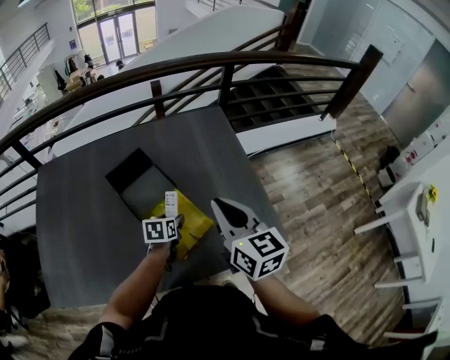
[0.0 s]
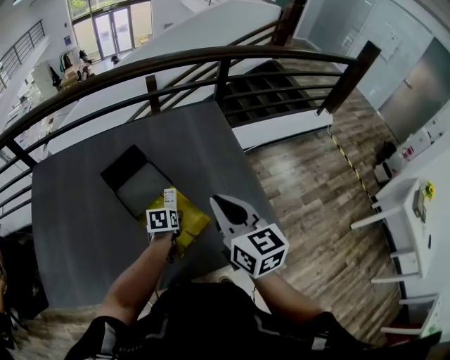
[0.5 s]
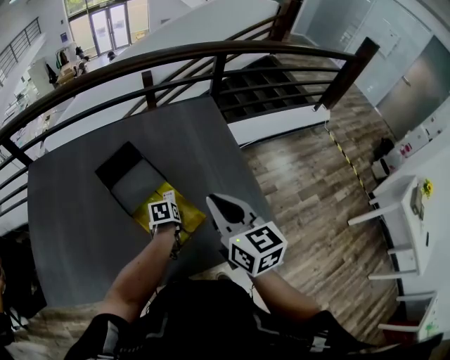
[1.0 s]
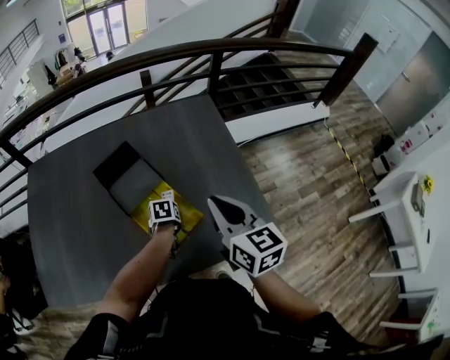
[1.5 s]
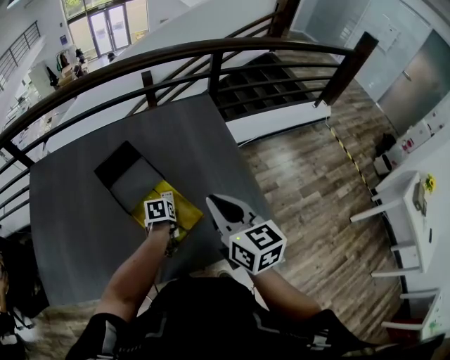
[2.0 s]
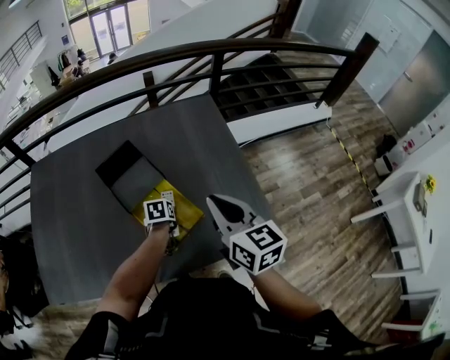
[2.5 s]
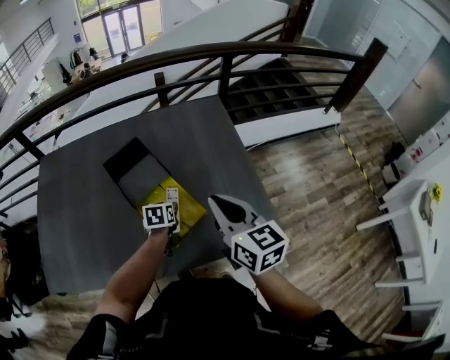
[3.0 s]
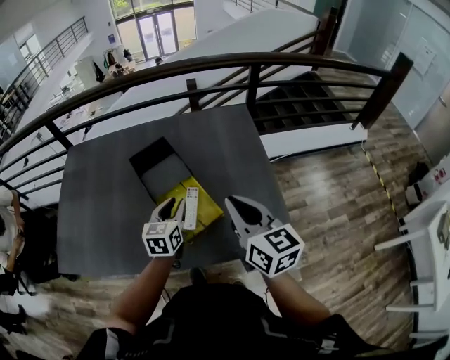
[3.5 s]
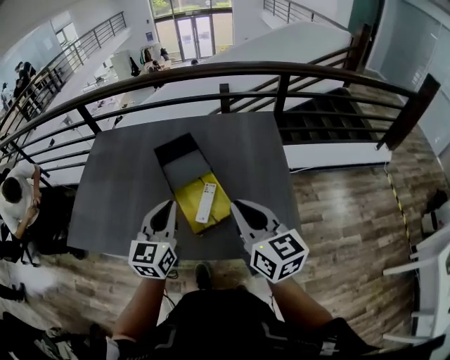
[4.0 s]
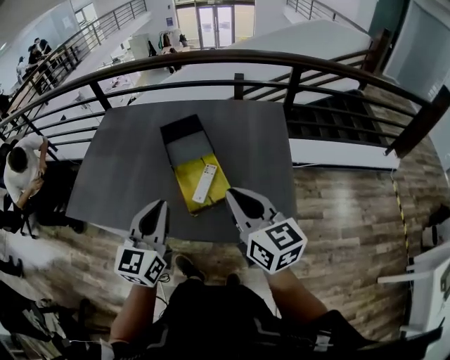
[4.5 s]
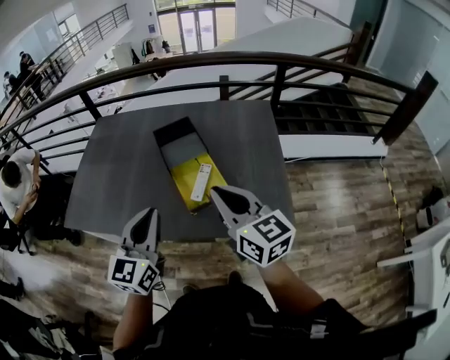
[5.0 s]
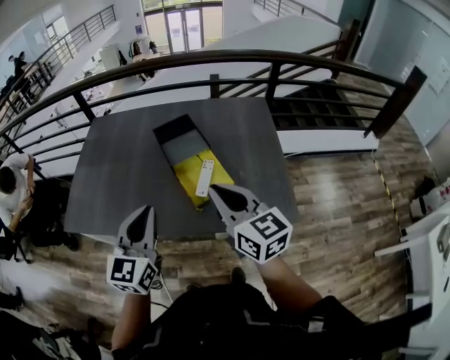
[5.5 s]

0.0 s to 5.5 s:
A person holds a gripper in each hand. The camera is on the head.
0.0 to 2.0 s: The left gripper is displaced downward by about 5 cm.
2.0 to 3.5 s: The right gripper changes place by roughly 5 cm. Meanwhile the left gripper is displaced upward by some 20 cm, points its fingers some 40 degrees further upward, and closes.
3.5 to 5.5 s: The right gripper is displaced backward and to the left by approximately 15 cm, while the left gripper shifts roughly 35 cm backward, upward and to the left, turns by some 20 degrees, and closes.

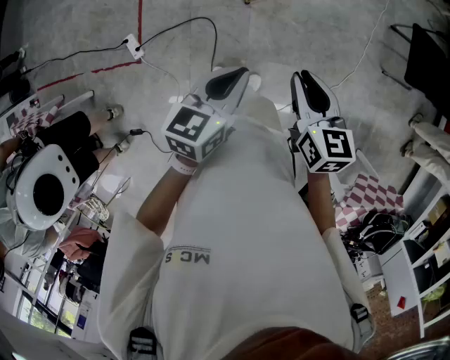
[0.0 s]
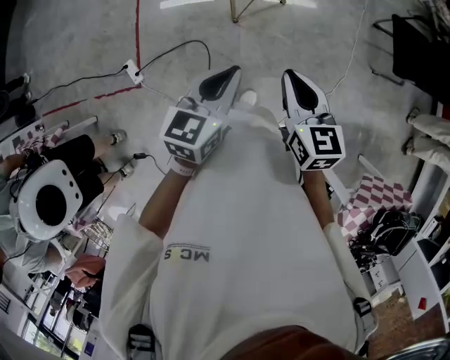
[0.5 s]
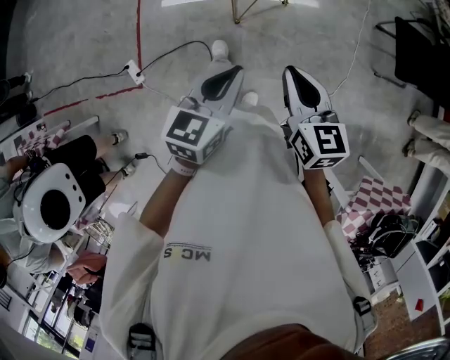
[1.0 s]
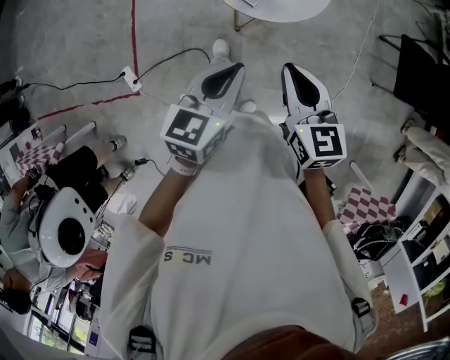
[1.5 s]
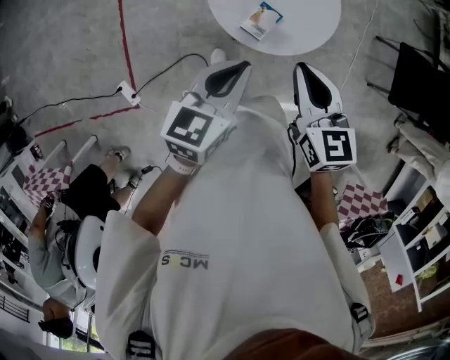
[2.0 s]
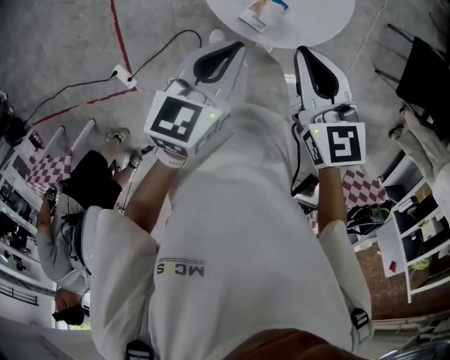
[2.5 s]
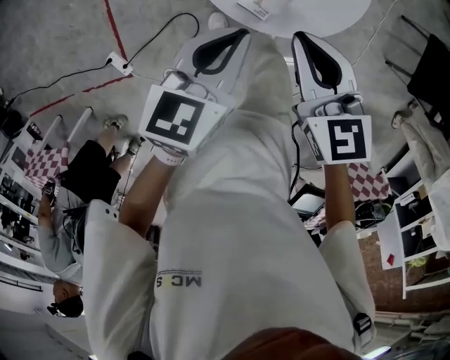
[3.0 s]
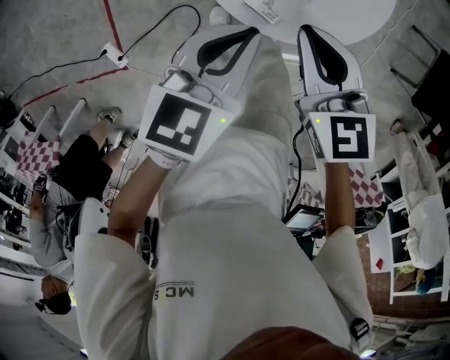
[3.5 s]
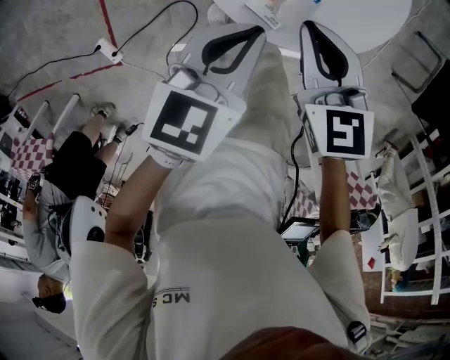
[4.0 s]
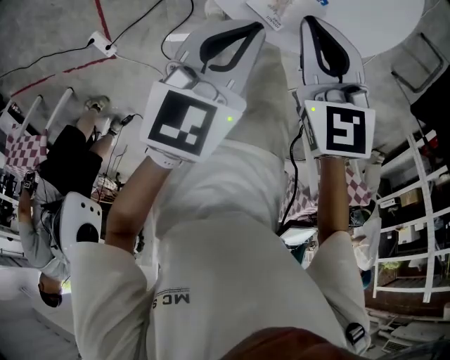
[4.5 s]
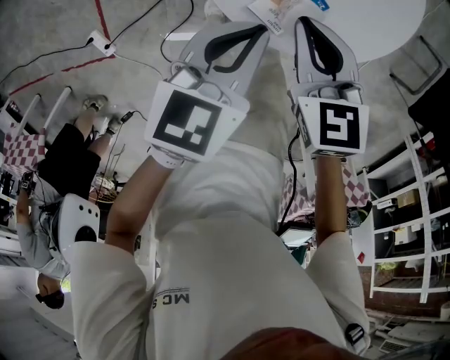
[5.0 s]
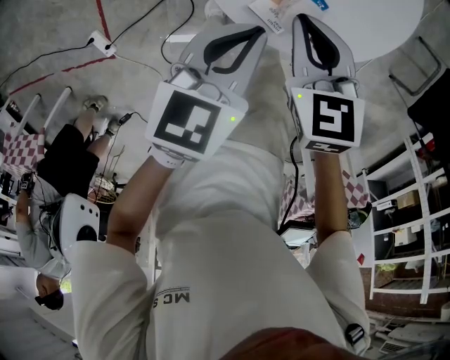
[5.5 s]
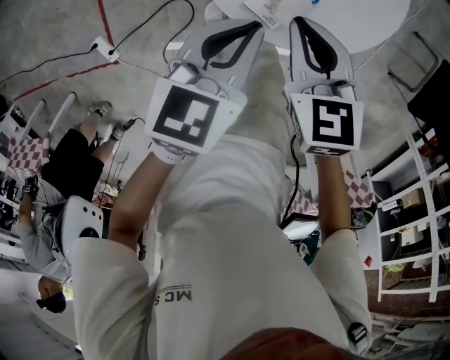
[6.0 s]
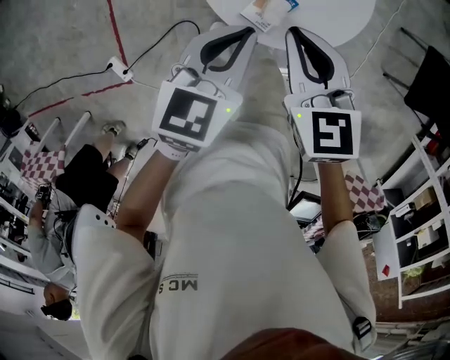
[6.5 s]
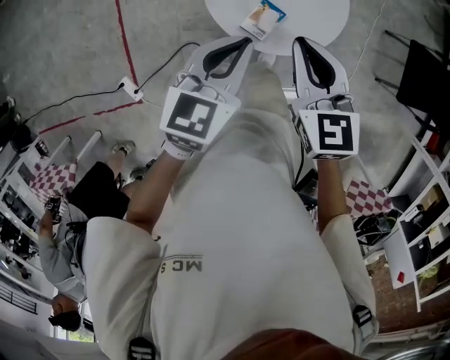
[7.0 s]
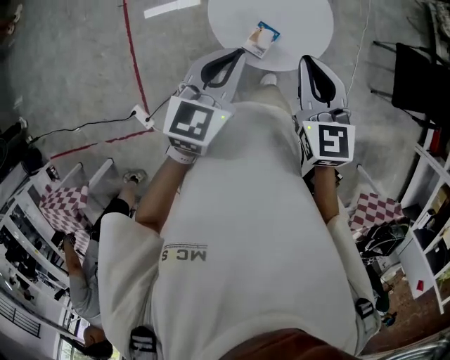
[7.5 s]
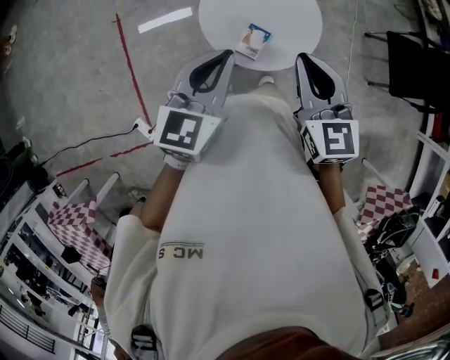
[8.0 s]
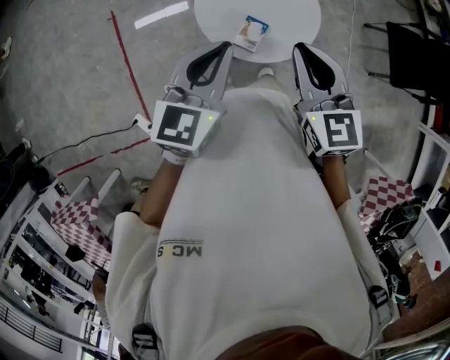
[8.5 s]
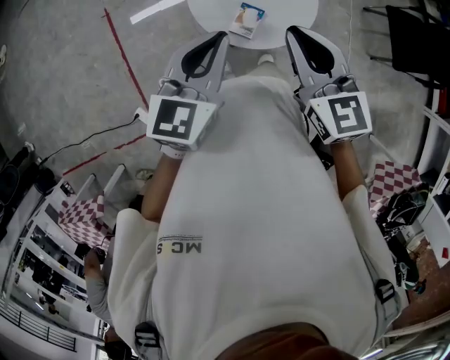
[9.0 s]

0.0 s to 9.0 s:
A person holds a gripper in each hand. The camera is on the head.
0.0 to 2.0 s: Both grippers are carried forward, some 40 cm.
2.0 to 4.5 s: The two grippers go some 30 cm downward and forward.
4.5 to 7.0 s: The grippers both shift upward by roughly 25 cm.
7.0 to 9.0 s: The right gripper shifts some 10 cm upward and backward, while the left gripper travels upward by approximately 10 cm.

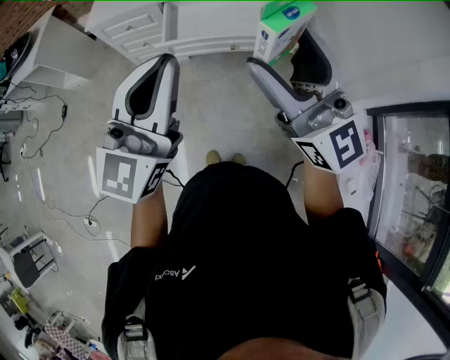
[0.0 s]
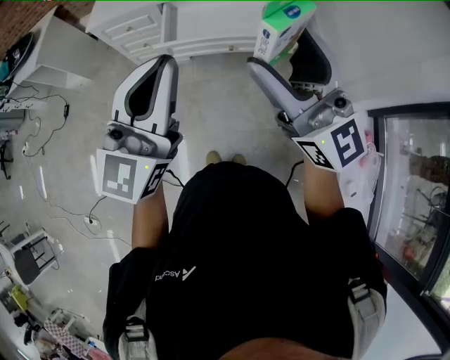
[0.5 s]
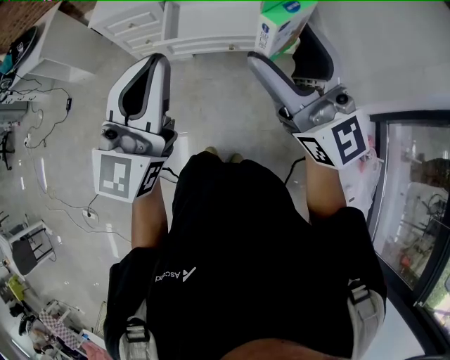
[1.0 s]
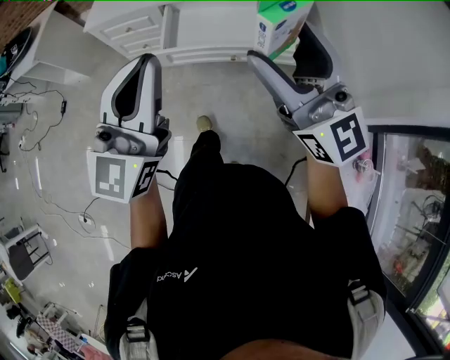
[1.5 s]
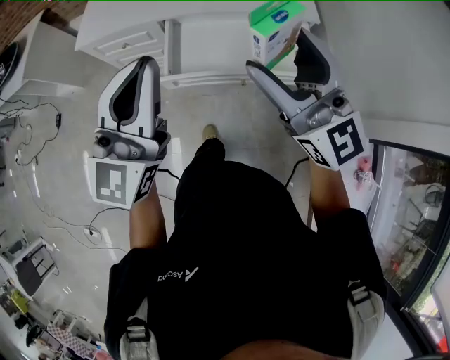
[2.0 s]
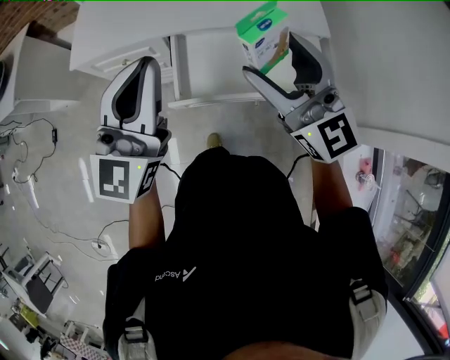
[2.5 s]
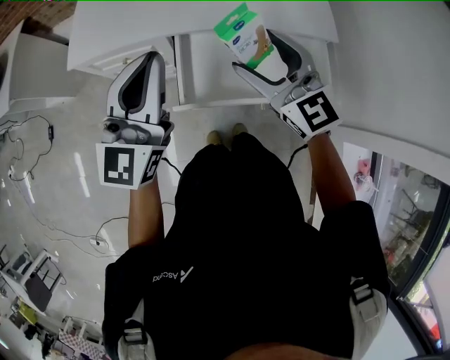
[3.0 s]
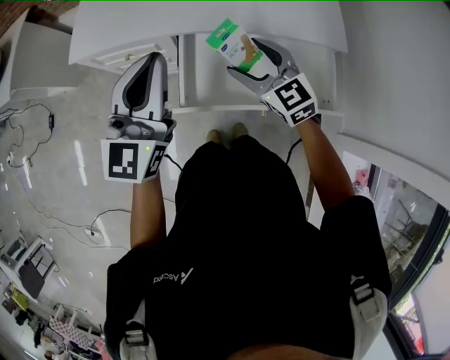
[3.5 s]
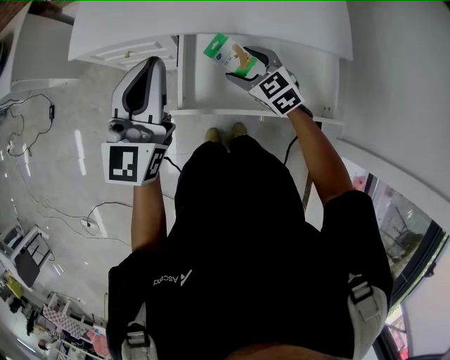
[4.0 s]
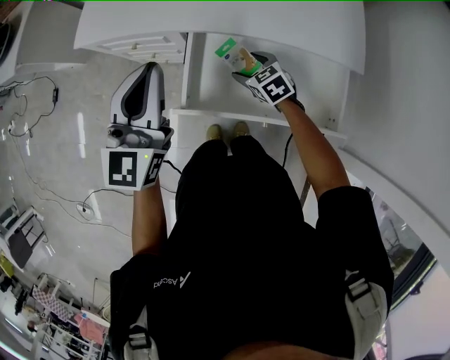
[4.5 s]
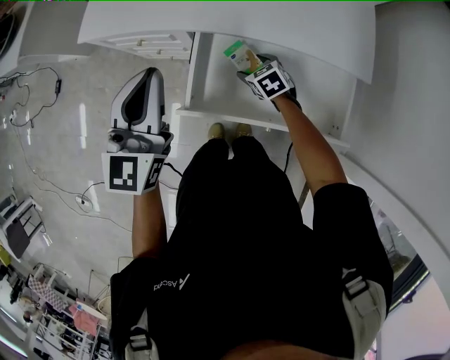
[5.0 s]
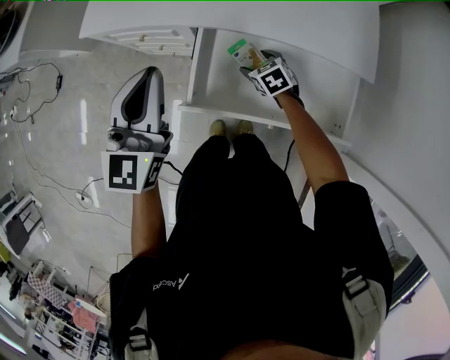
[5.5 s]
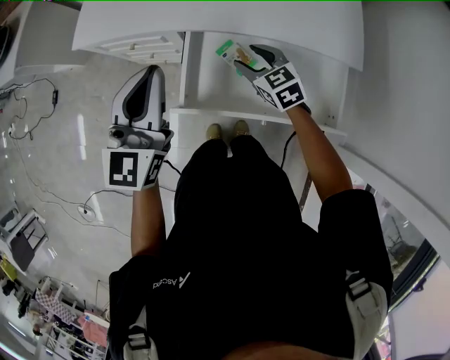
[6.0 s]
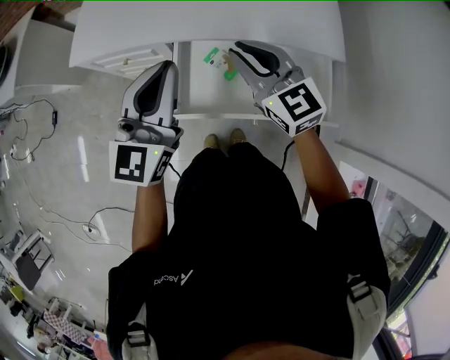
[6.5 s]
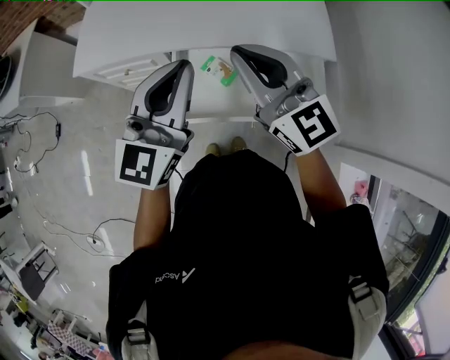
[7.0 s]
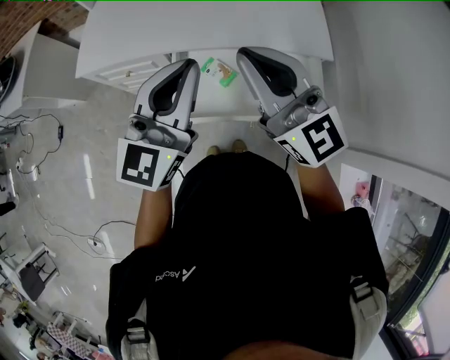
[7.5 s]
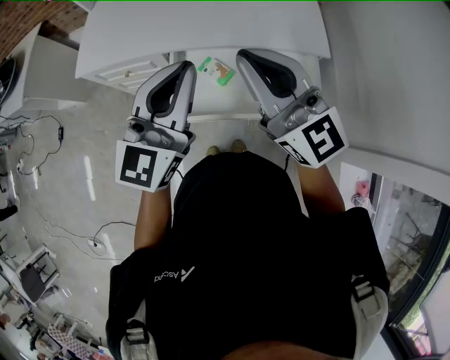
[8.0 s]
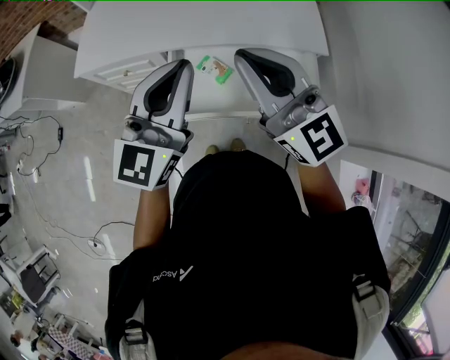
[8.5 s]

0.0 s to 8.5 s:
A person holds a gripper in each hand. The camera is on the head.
0.0 to 2.0 s: Both grippers travel together forward, some 25 cm.
2.0 to 4.0 s: The left gripper shifts some 25 cm forward and downward. Meanwhile the right gripper travels downward and forward by about 40 cm, and angles its fingers downward, by about 50 degrees.
4.0 to 6.5 s: The right gripper goes some 15 cm upward, rotates approximately 30 degrees, and closes up.
6.5 to 8.5 s: The left gripper moves backward and to the right, about 10 cm; the right gripper heads upward and backward, covering some 15 cm, and rotates approximately 20 degrees.

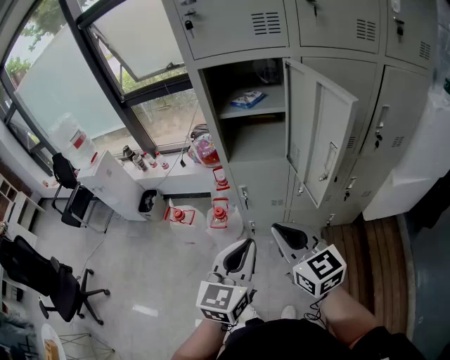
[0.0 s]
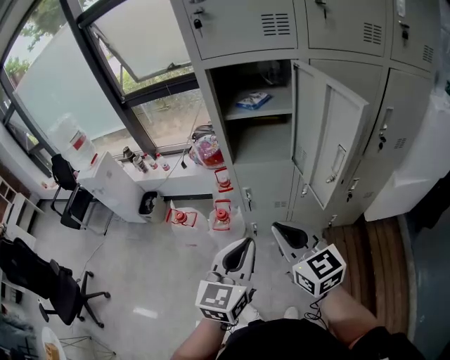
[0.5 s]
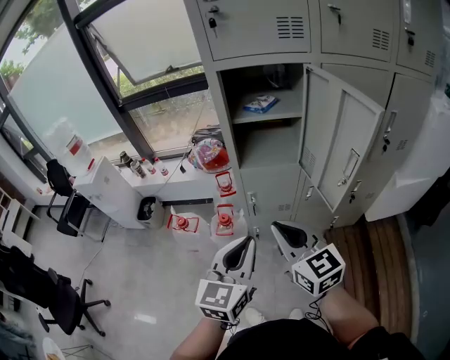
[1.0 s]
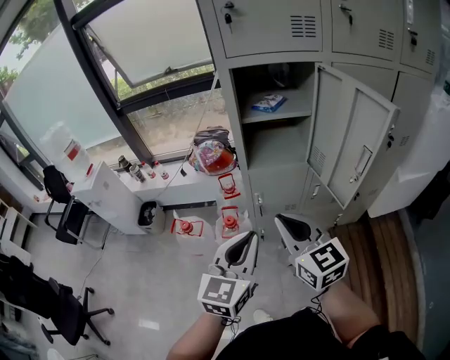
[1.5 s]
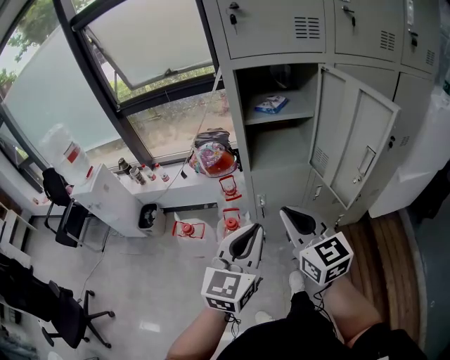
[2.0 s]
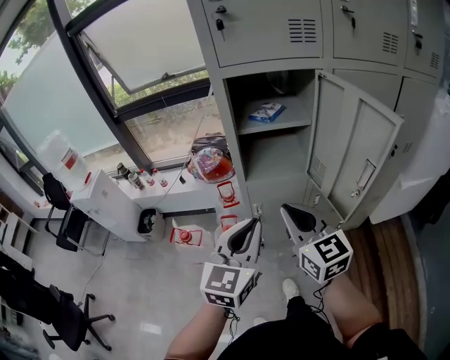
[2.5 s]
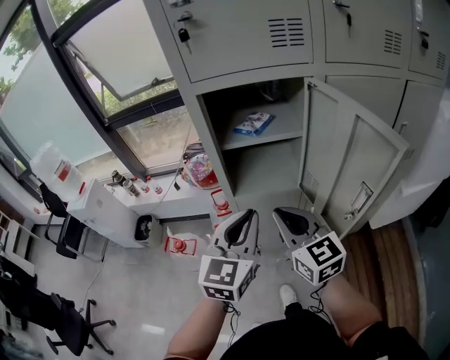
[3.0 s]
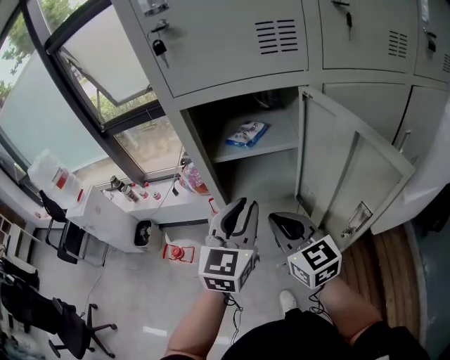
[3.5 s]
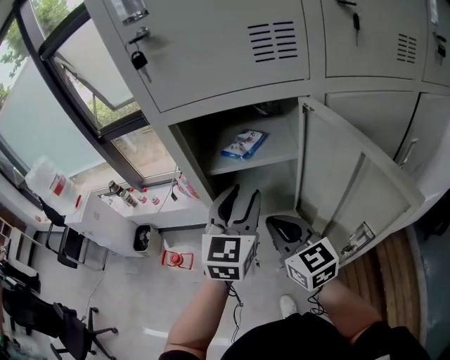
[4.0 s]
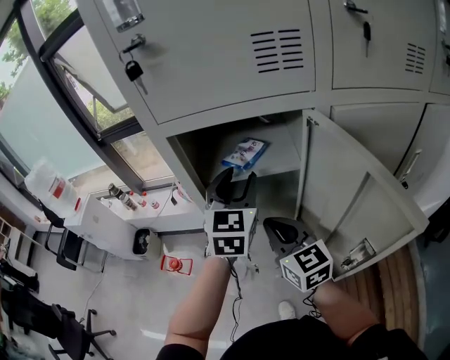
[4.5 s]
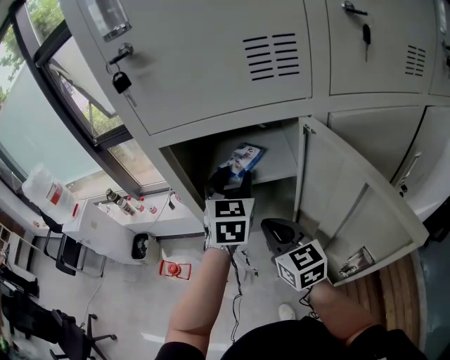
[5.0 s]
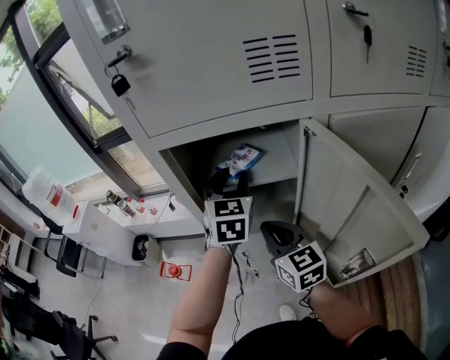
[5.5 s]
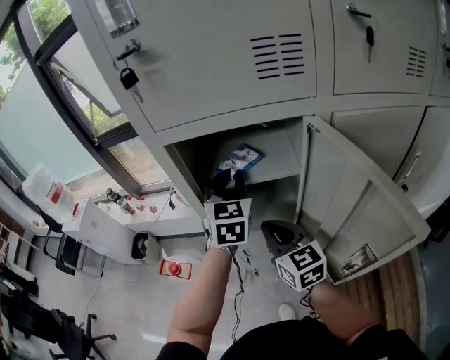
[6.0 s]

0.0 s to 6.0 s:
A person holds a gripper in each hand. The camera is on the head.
0.0 to 2.0 s: The grippers both shift to the left and forward by roughly 10 cm.
2.0 to 4.0 s: The two grippers go about 25 cm forward and to the right. The left gripper opens up.
4.0 to 6.0 s: The right gripper travels forward by roughly 5 cm; the left gripper goes approximately 10 cm forward.
